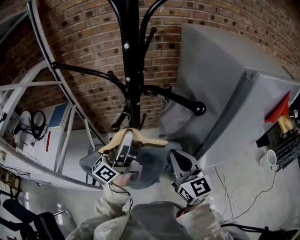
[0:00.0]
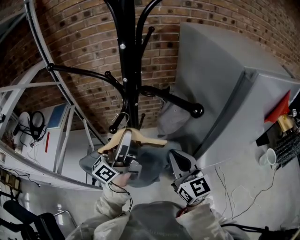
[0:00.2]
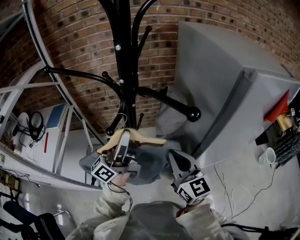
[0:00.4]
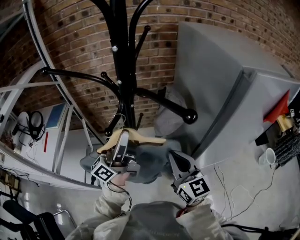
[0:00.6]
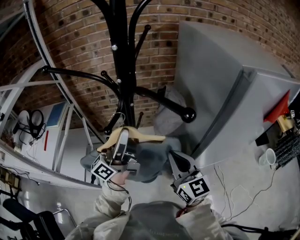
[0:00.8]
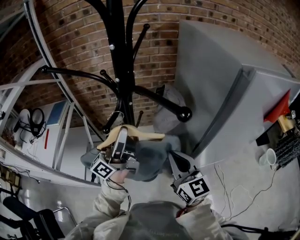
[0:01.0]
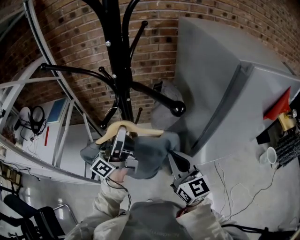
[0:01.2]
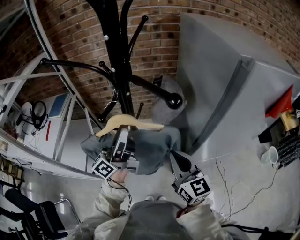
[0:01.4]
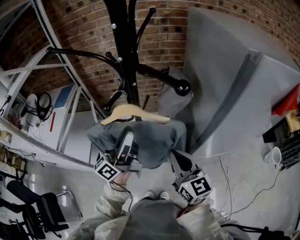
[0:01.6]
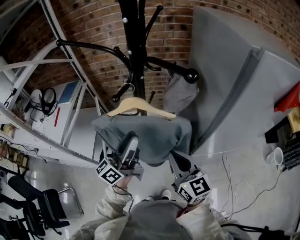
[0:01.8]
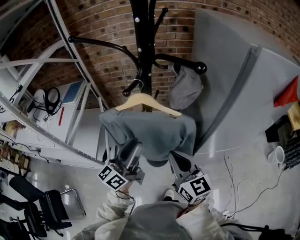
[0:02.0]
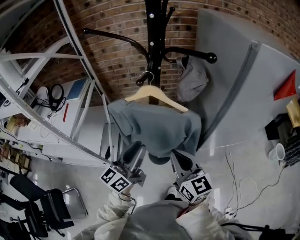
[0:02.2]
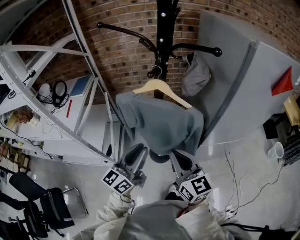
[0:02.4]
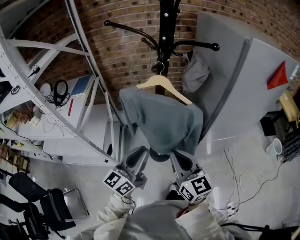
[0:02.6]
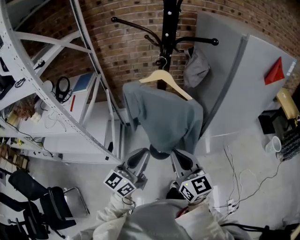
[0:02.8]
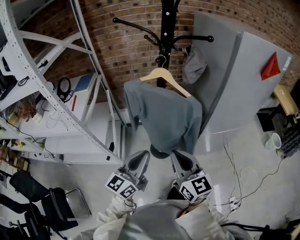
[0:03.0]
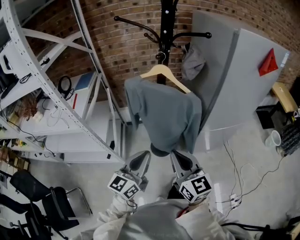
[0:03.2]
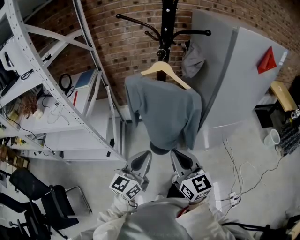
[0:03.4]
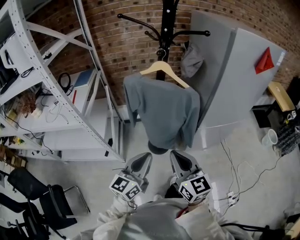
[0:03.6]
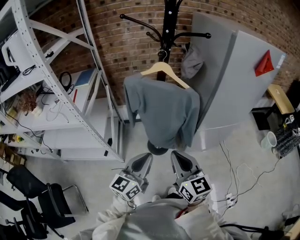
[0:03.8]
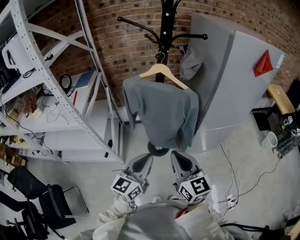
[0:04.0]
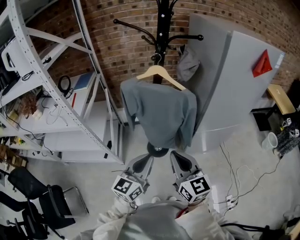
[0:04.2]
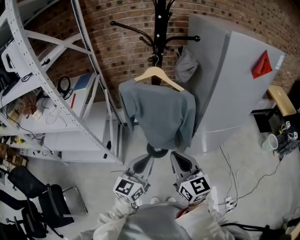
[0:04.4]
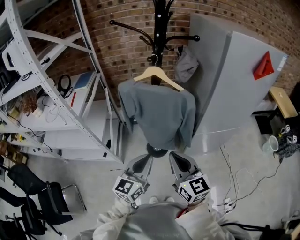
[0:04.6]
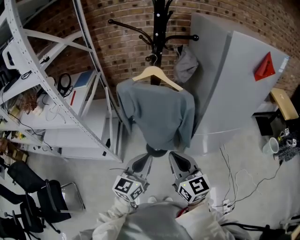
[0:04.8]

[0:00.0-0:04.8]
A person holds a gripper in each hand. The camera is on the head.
0:00.0 to 0:01.6: The right gripper ends up roughly 5 cm from where it was, while the left gripper heads downward, covering roughly 5 cm.
0:01.6 to 0:03.2: The right gripper travels backward and to the left by approximately 30 cm. The left gripper moves backward, roughly 30 cm, rotates approximately 30 degrees, and closes its fingers.
0:03.2 to 0:04.8: Both grippers travel together to the right, approximately 5 cm.

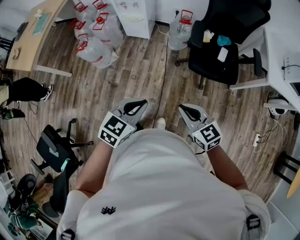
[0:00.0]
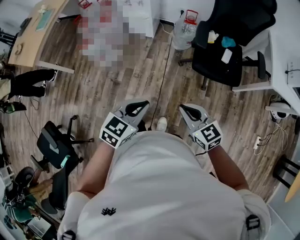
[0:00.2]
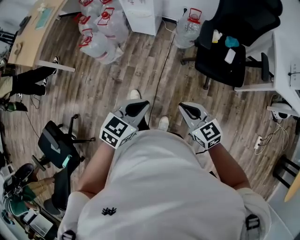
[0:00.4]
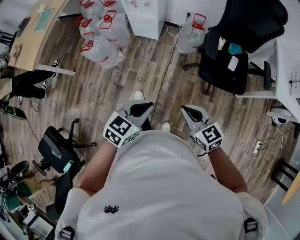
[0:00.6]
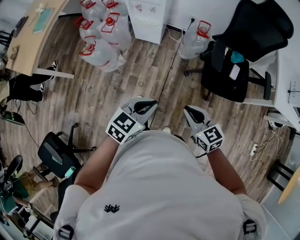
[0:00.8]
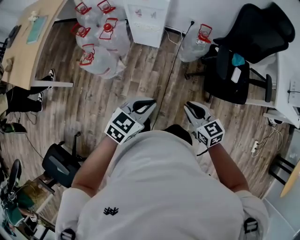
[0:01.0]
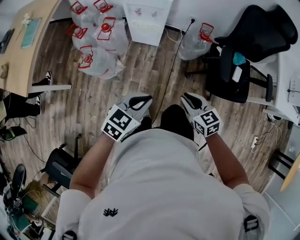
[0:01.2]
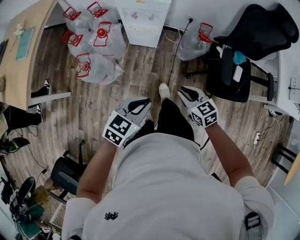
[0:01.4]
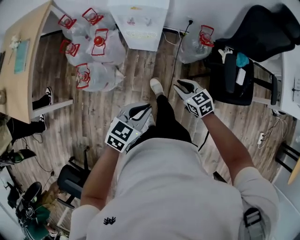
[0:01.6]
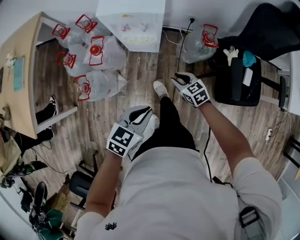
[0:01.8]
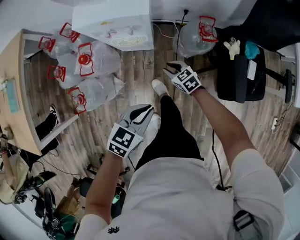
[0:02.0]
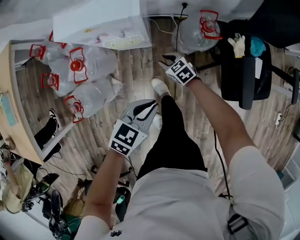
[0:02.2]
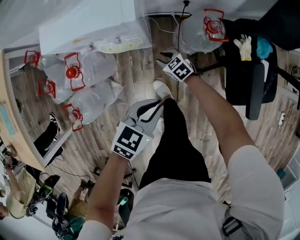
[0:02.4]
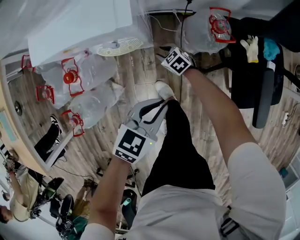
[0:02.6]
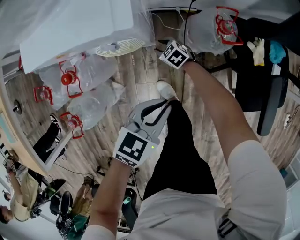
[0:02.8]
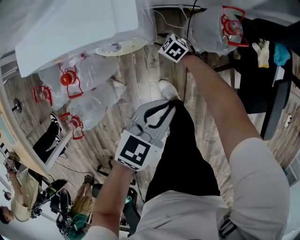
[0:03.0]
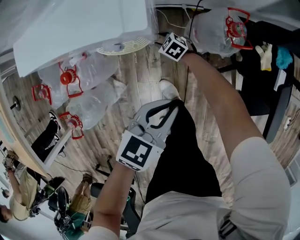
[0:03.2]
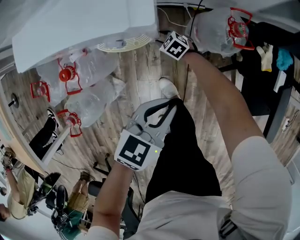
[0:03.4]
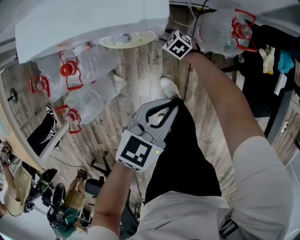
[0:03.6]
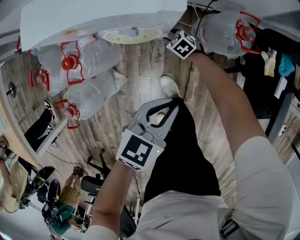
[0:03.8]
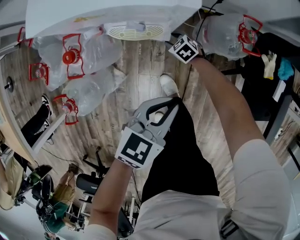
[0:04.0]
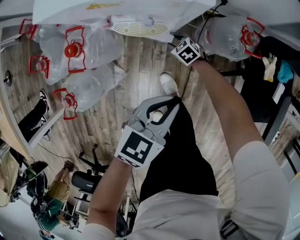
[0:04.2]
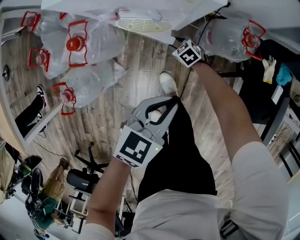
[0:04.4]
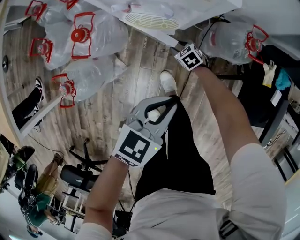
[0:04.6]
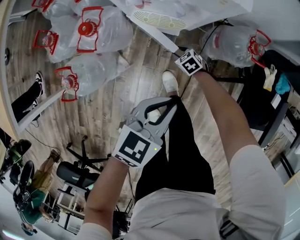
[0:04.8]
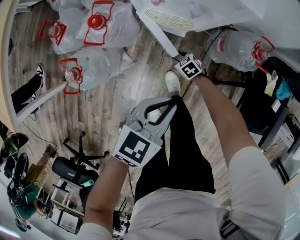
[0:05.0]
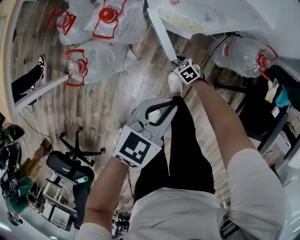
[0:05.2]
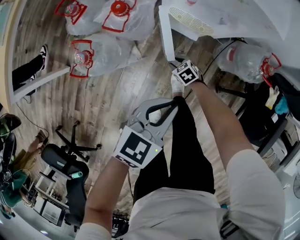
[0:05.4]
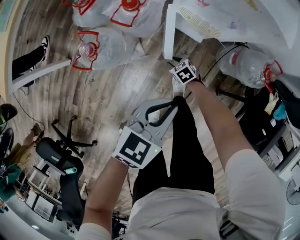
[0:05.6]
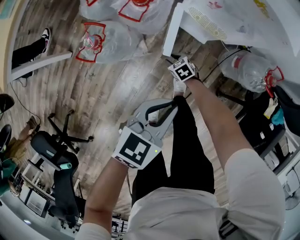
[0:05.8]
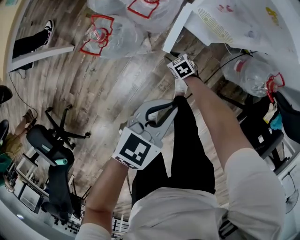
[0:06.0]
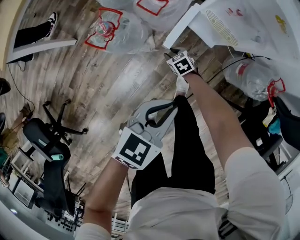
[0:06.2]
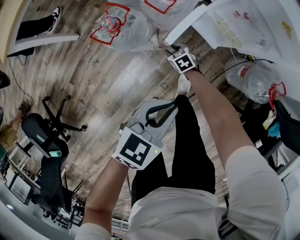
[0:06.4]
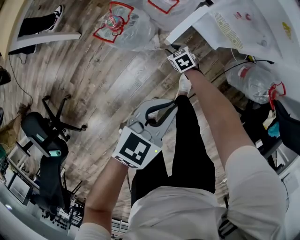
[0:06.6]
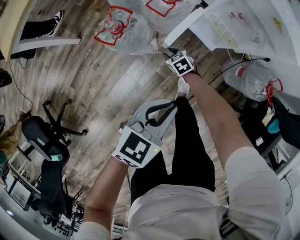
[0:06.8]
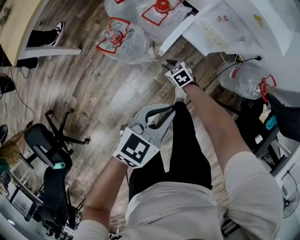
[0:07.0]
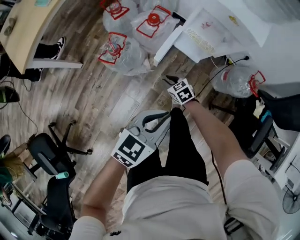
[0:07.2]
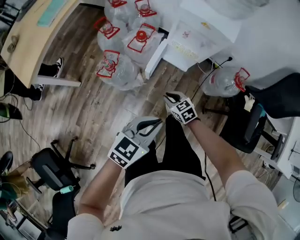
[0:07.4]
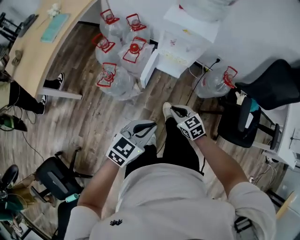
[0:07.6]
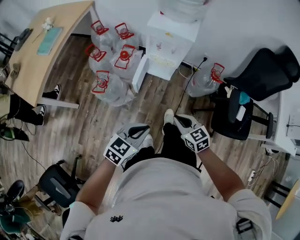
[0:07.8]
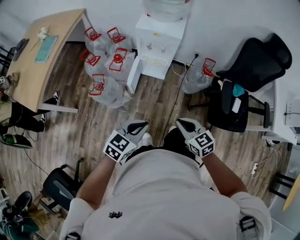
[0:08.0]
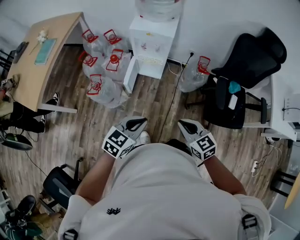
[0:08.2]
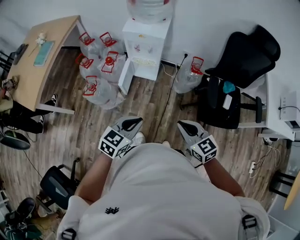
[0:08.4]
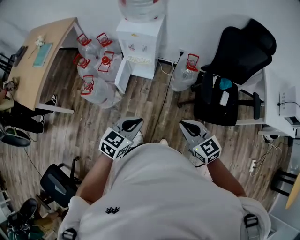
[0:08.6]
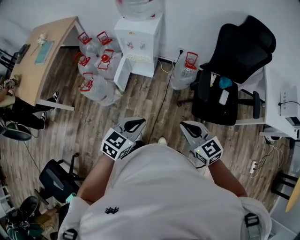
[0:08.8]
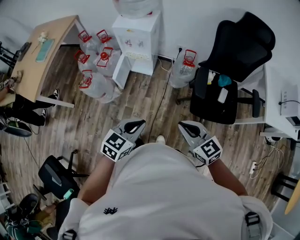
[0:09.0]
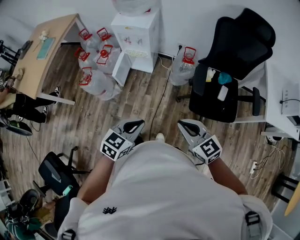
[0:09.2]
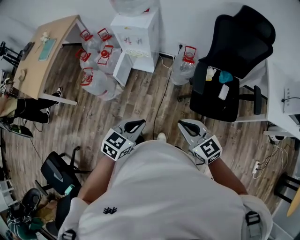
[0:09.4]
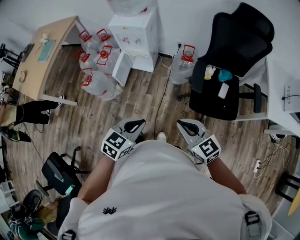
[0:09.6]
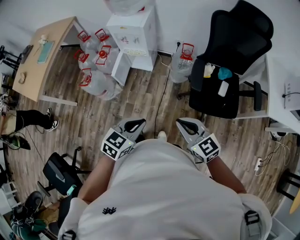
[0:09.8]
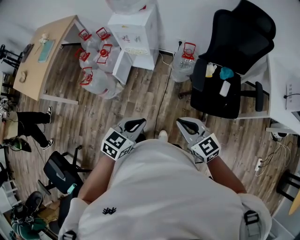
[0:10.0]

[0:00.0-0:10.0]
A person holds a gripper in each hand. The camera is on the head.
0:00.0 to 0:01.4: Both grippers move forward and to the left, about 40 cm.
0:01.4 to 0:02.8: The right gripper moves downward and forward, approximately 60 cm, and opens its fingers, while the left gripper travels forward and downward by about 40 cm.
0:02.8 to 0:04.2: The grippers make only small movements.
0:04.2 to 0:05.8: The right gripper moves roughly 30 cm, while the left gripper ends up roughly 20 cm from where it was, and changes its angle by about 20 degrees.
0:05.8 to 0:07.2: The left gripper goes approximately 15 cm upward, backward and to the left. Meanwhile the right gripper travels upward by approximately 15 cm.
0:07.2 to 0:08.6: The left gripper shifts some 30 cm to the right, upward and backward; the right gripper is displaced upward, to the right and backward by roughly 70 cm, turns by about 40 degrees, and closes.
0:08.6 to 0:10.0: The two grippers go approximately 15 cm to the right and backward.

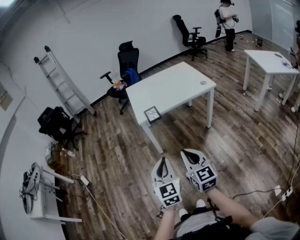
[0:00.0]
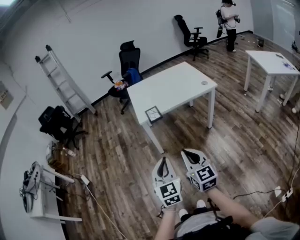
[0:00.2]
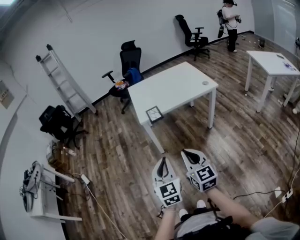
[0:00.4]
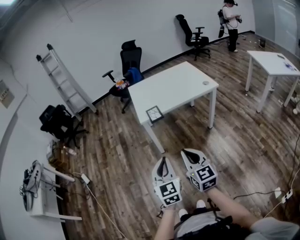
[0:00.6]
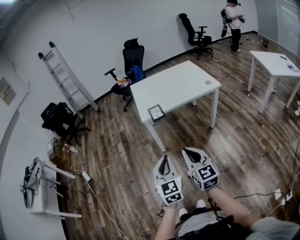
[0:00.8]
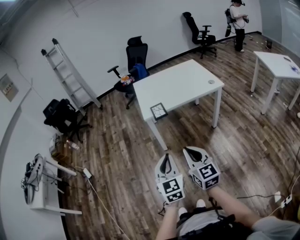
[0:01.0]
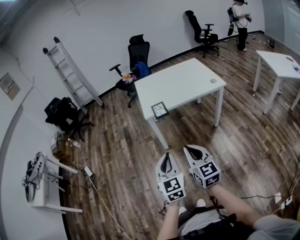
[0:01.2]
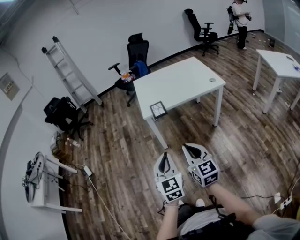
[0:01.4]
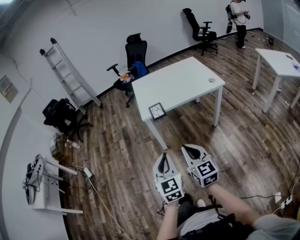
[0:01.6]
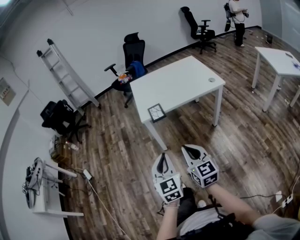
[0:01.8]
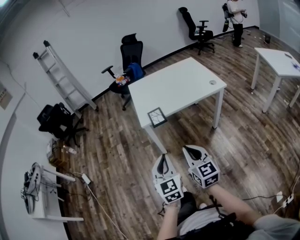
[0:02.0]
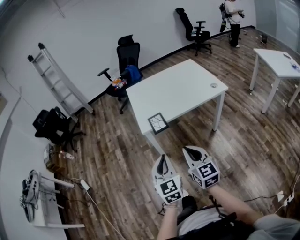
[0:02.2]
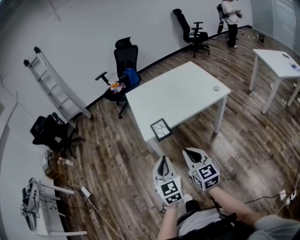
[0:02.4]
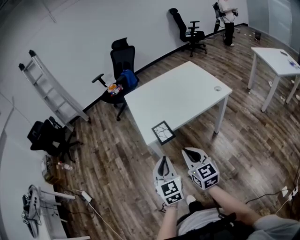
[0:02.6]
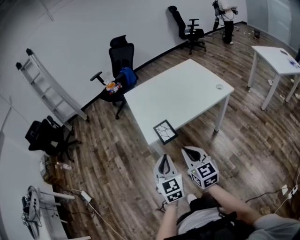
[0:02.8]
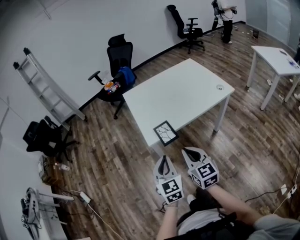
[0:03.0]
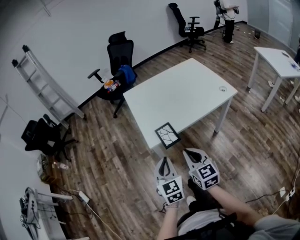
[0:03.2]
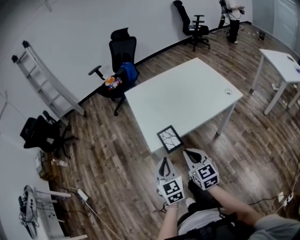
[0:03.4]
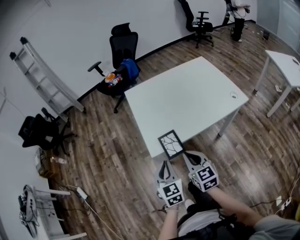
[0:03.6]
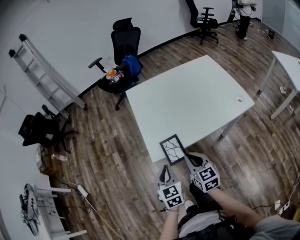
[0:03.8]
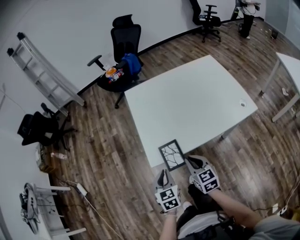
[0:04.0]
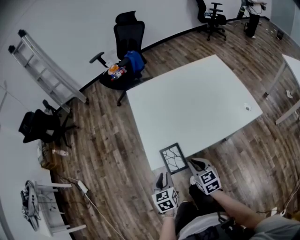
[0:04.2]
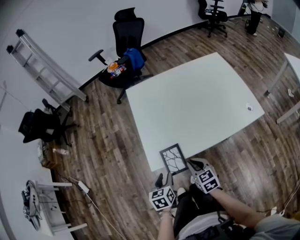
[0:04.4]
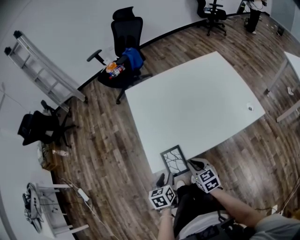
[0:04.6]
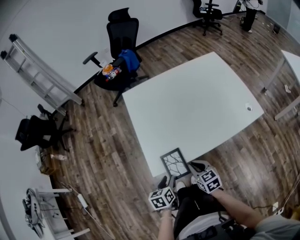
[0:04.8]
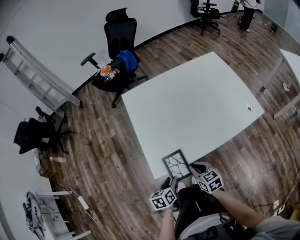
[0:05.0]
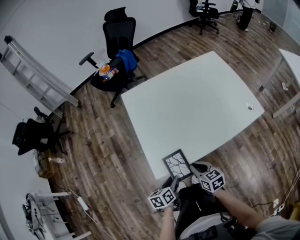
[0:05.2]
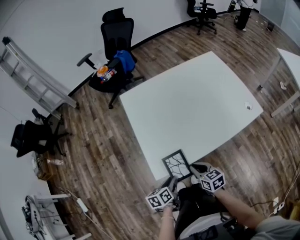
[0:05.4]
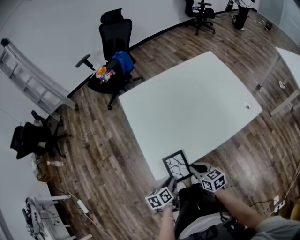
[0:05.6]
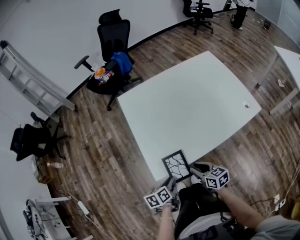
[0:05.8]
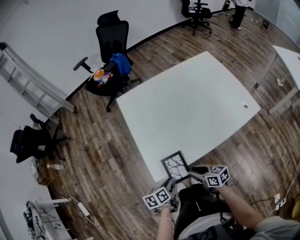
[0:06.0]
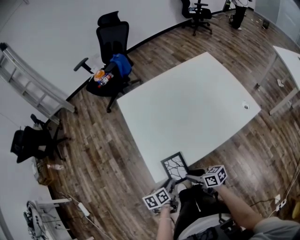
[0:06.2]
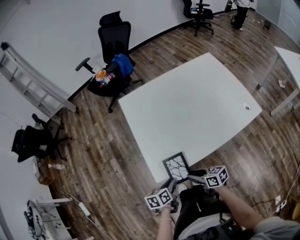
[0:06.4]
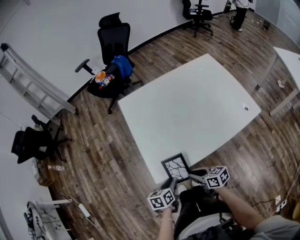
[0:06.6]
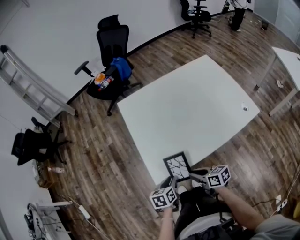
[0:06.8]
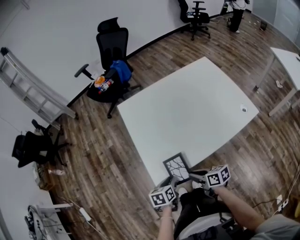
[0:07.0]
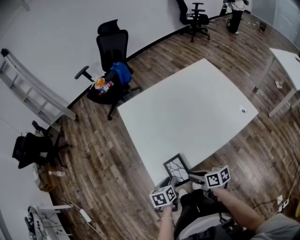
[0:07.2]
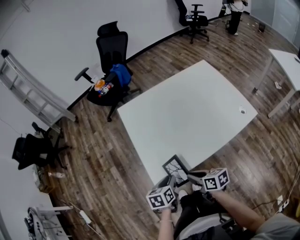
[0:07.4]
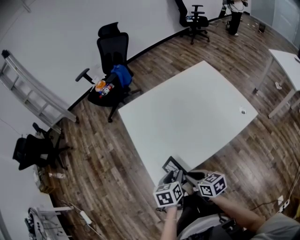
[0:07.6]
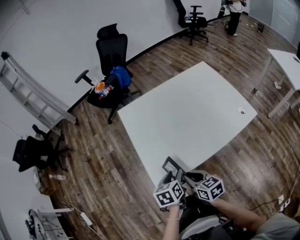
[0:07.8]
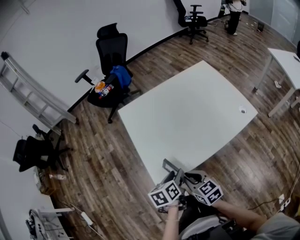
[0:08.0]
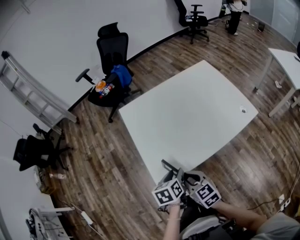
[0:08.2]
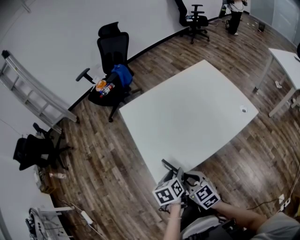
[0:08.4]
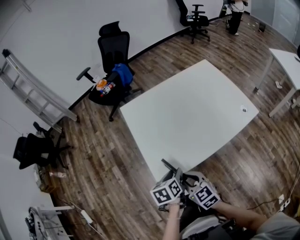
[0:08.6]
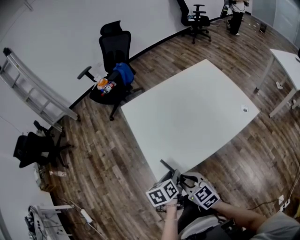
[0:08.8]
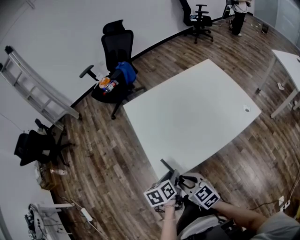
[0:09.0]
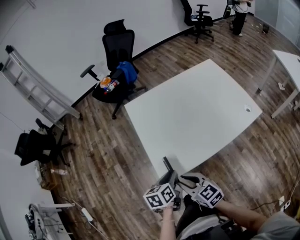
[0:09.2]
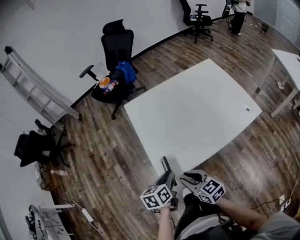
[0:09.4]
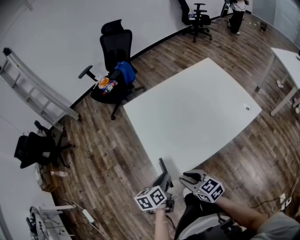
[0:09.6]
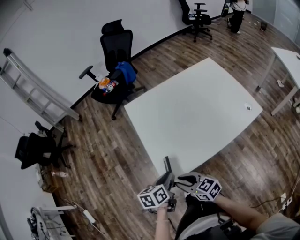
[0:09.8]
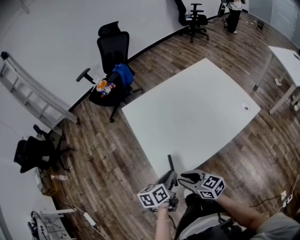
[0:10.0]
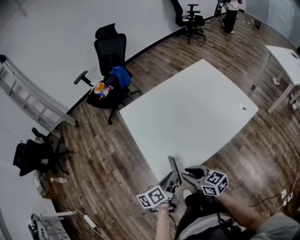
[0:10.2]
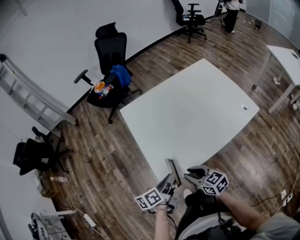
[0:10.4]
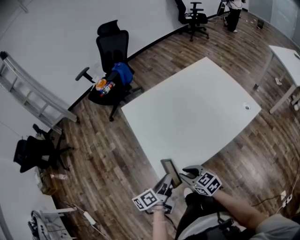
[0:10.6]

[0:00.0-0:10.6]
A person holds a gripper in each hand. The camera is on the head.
0:00.0 to 0:01.6: The right gripper moves some 5 cm.
0:01.6 to 0:03.0: Both grippers move forward, approximately 30 cm.
0:03.0 to 0:04.6: The right gripper heads forward and downward, covering some 30 cm, and changes its angle by roughly 30 degrees. Meanwhile the left gripper travels downward and forward by some 25 cm, swivels approximately 40 degrees, and opens.
0:04.6 to 0:06.0: The right gripper swivels some 30 degrees, while the left gripper turns by approximately 30 degrees.
0:06.0 to 0:07.6: The left gripper travels upward, forward and to the right by about 15 cm, and turns by some 30 degrees; the right gripper heads upward, covering some 10 cm.
0:07.6 to 0:09.0: The right gripper moves to the left, roughly 5 cm, and swivels some 30 degrees.
0:09.0 to 0:10.6: The left gripper swings left and right, roughly 5 cm each way, with 2 reversals, and rotates about 20 degrees; the right gripper ends up about 5 cm from where it was.